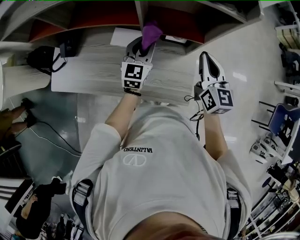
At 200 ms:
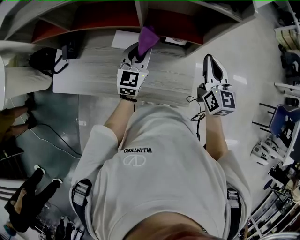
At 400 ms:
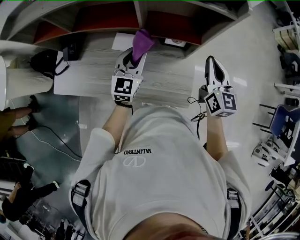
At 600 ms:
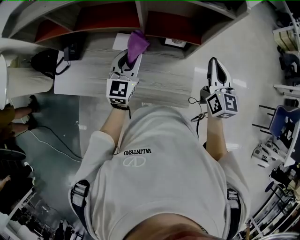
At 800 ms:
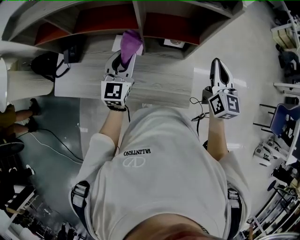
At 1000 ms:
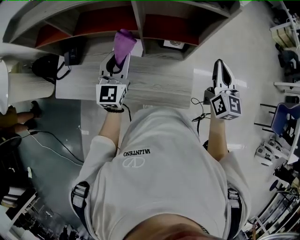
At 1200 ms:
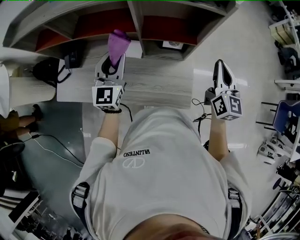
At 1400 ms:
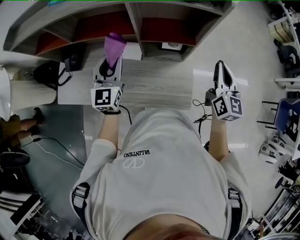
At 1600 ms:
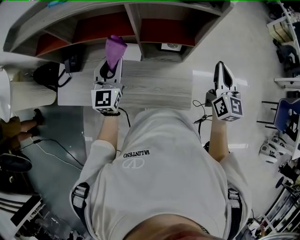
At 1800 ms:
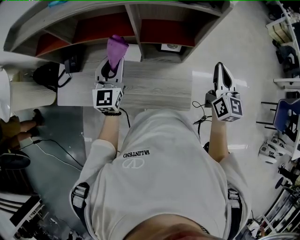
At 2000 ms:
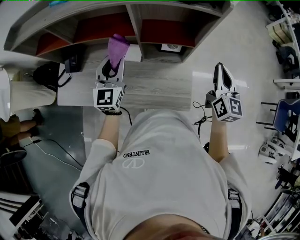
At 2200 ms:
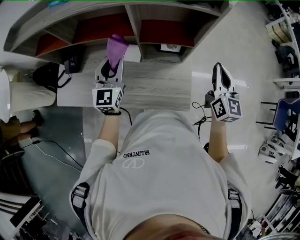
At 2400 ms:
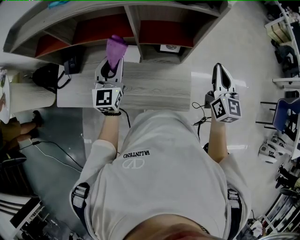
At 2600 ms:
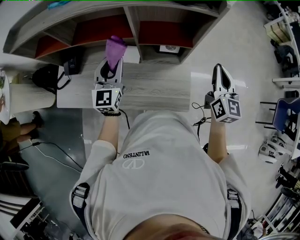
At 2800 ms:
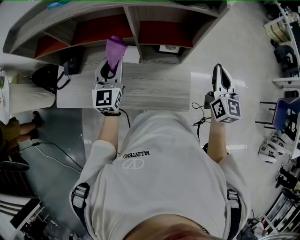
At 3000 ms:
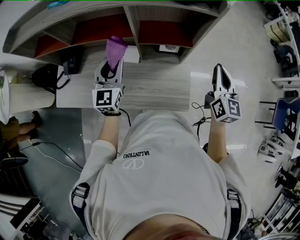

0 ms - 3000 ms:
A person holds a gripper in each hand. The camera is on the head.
0 ms - 1600 ms: The right gripper heads to the right, covering approximately 10 cm; the left gripper is displaced to the left, upward and backward by about 15 cm.
1600 ms - 3000 ms: Both grippers stay put.

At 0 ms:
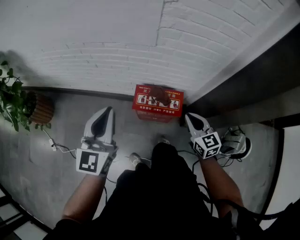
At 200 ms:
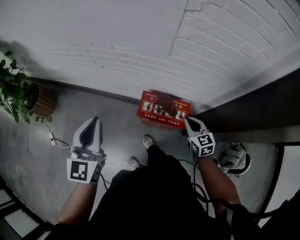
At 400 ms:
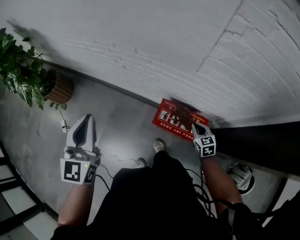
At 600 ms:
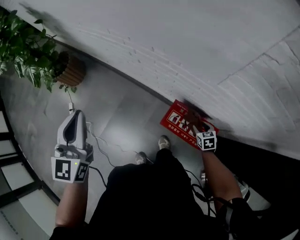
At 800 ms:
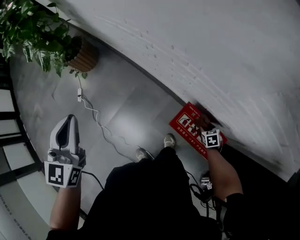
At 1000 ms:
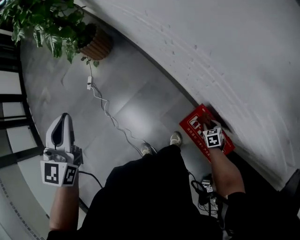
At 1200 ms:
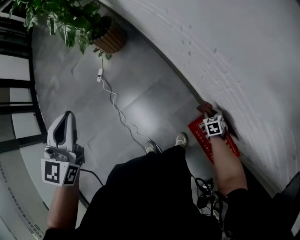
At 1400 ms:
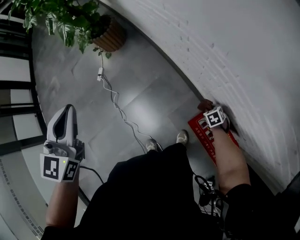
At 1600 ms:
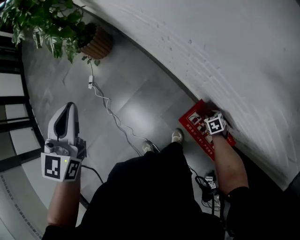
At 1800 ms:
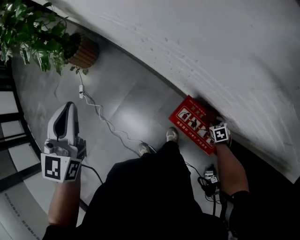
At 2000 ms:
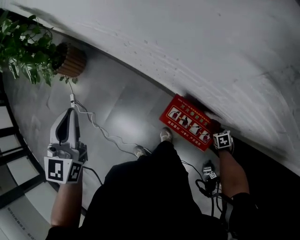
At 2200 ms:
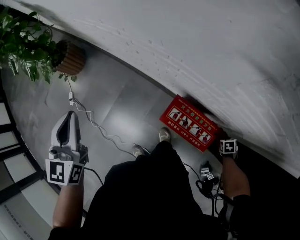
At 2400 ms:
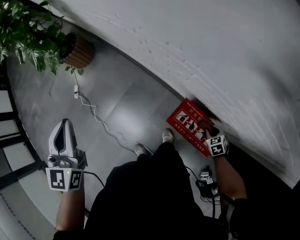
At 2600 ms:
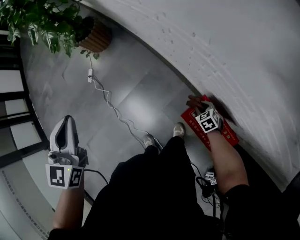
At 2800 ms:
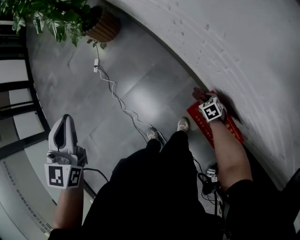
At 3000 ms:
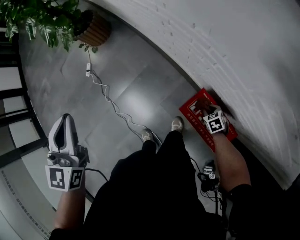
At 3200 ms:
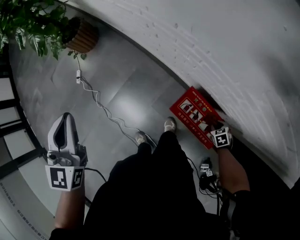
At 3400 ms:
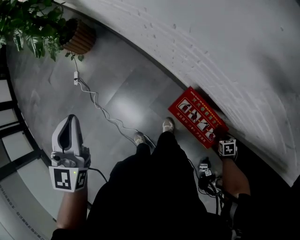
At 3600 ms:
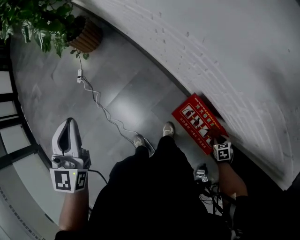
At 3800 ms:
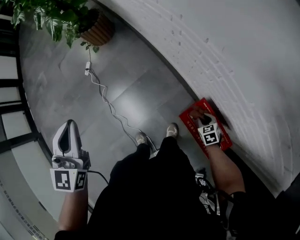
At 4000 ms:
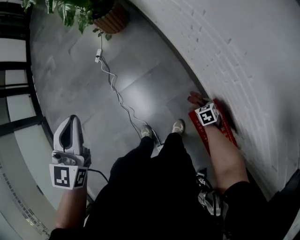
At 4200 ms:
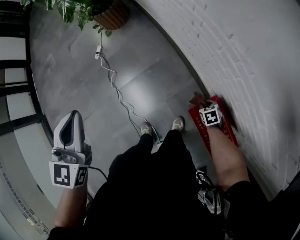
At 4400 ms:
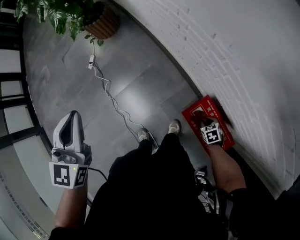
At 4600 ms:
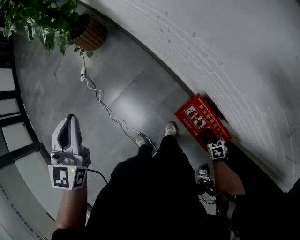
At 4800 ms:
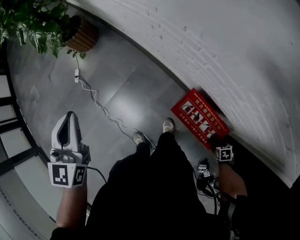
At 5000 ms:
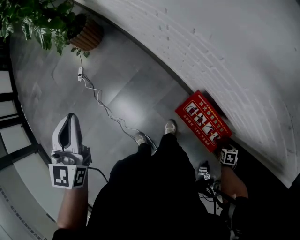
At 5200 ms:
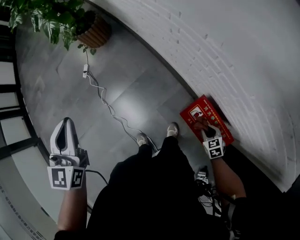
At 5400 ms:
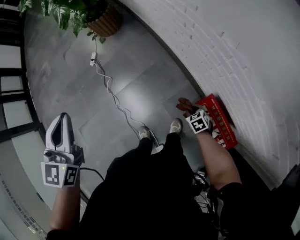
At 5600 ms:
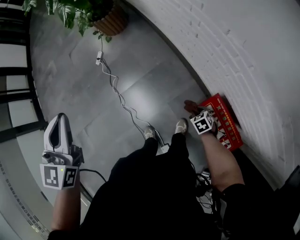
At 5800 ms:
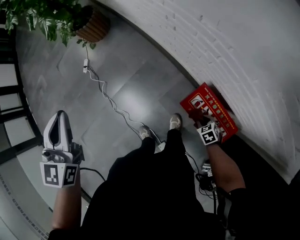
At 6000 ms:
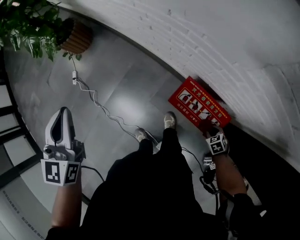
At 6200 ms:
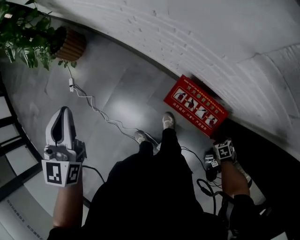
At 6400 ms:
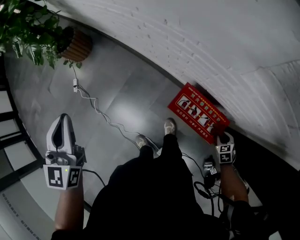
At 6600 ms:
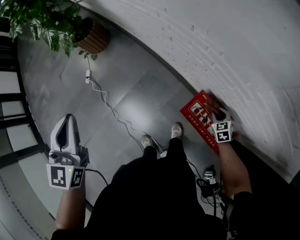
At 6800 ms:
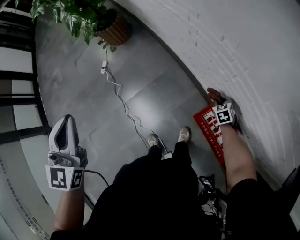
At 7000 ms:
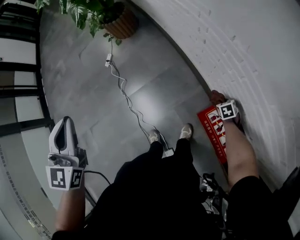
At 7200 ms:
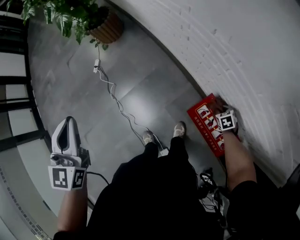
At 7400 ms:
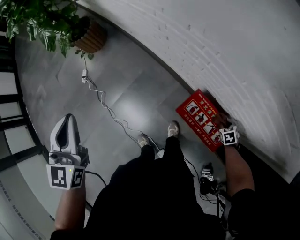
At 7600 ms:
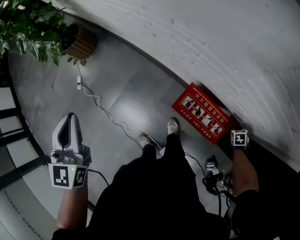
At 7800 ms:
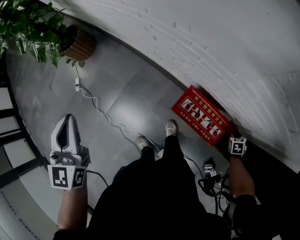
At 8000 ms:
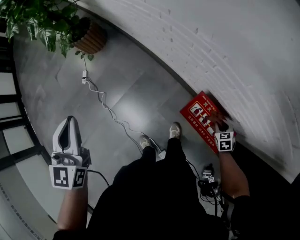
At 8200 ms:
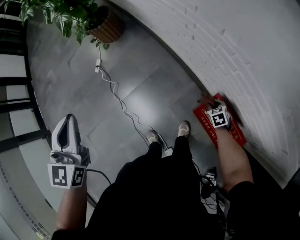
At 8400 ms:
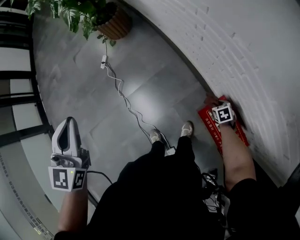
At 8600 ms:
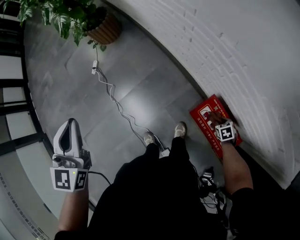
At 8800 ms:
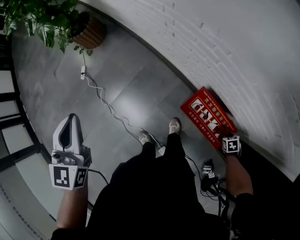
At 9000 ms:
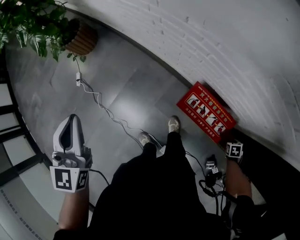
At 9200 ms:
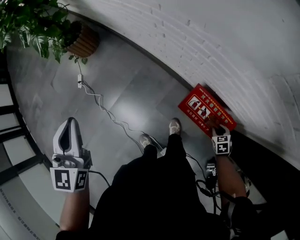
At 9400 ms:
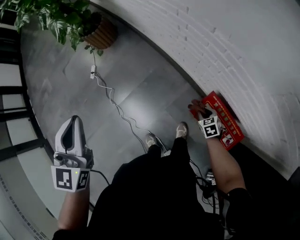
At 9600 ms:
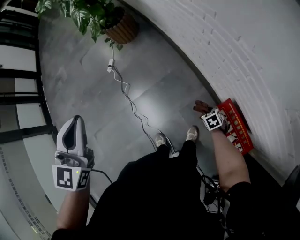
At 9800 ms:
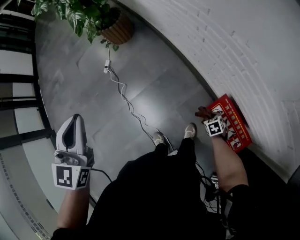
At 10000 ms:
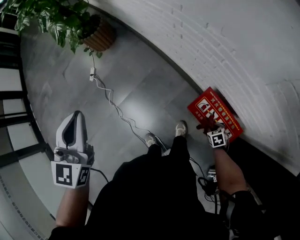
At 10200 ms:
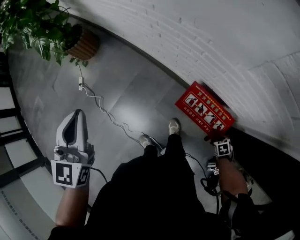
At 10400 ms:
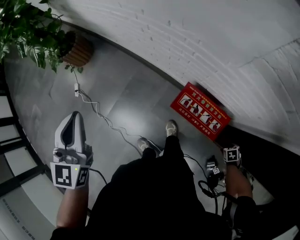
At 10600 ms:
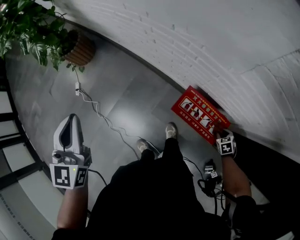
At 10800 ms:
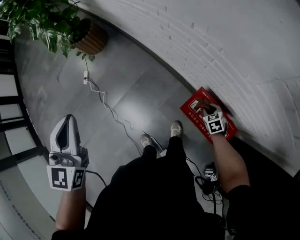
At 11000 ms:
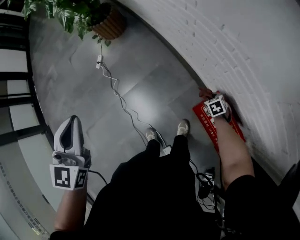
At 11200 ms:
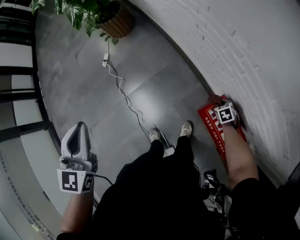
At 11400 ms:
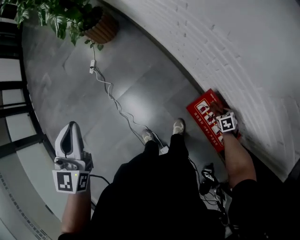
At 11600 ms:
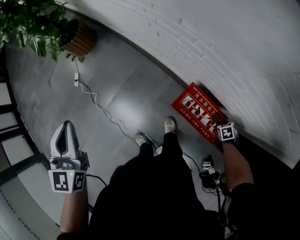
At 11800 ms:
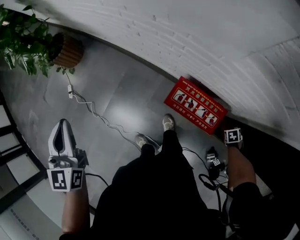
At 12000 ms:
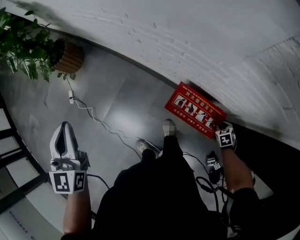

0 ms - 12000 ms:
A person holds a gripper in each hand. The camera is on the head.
0 ms - 1600 ms: The right gripper moves downward, about 35 cm, points its fingers some 50 degrees further downward, and opens; the left gripper ends up some 20 cm from where it was, and turns by approximately 50 degrees.
1600 ms - 3000 ms: The left gripper moves some 5 cm.
6000 ms - 7600 ms: The right gripper turns by approximately 30 degrees.

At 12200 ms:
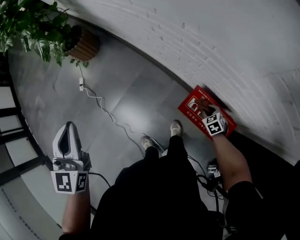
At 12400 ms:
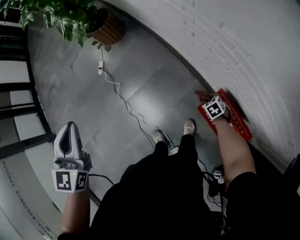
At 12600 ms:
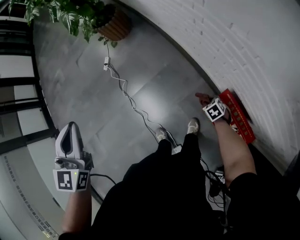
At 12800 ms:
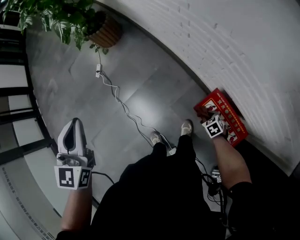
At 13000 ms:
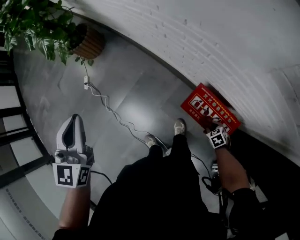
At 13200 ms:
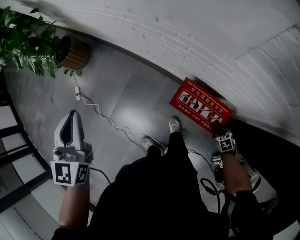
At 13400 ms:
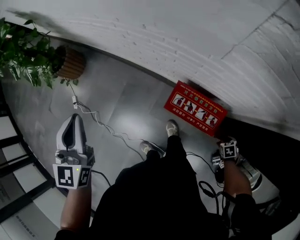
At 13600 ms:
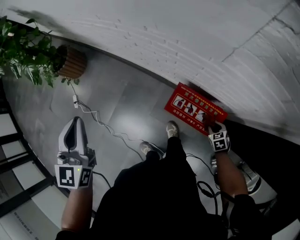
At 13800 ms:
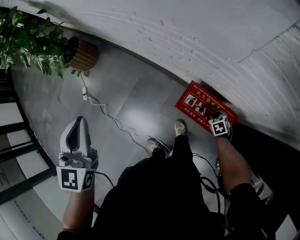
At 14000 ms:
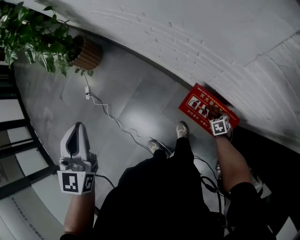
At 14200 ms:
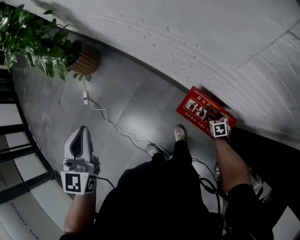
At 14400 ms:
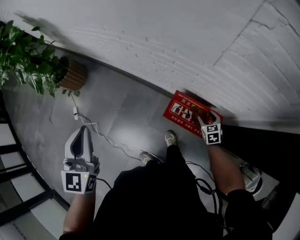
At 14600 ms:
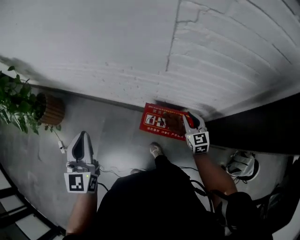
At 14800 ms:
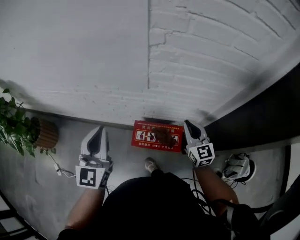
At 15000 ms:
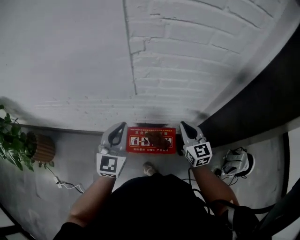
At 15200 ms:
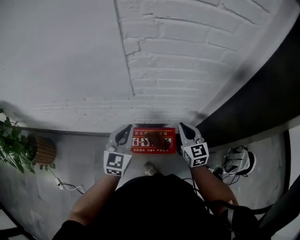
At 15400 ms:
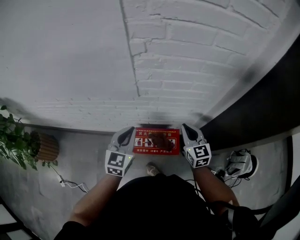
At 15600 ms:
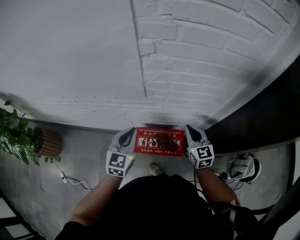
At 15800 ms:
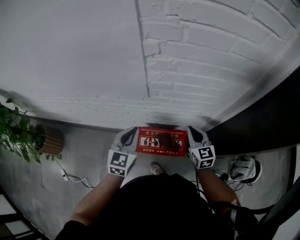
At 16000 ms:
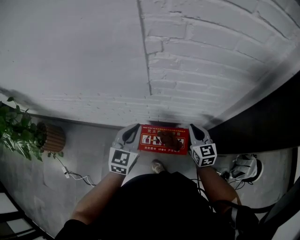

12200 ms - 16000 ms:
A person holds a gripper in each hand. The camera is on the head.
12200 ms - 13400 ms: The left gripper changes place by some 10 cm. Meanwhile the right gripper moves about 30 cm, and turns by about 40 degrees.
13400 ms - 14800 ms: The left gripper moves about 20 cm, and rotates about 30 degrees, while the right gripper moves upward, some 35 cm, tilts its fingers about 70 degrees upward, and opens and closes again.
14800 ms - 16000 ms: The left gripper goes roughly 15 cm downward, to the right and forward, and changes its angle by roughly 20 degrees. The right gripper shifts by approximately 5 cm.

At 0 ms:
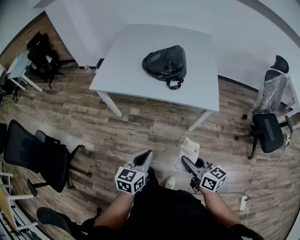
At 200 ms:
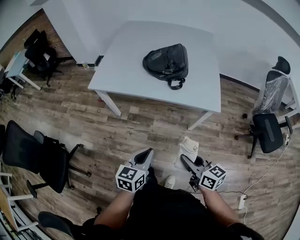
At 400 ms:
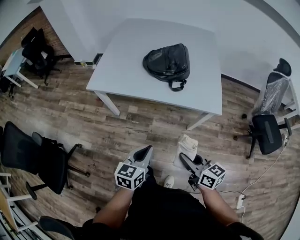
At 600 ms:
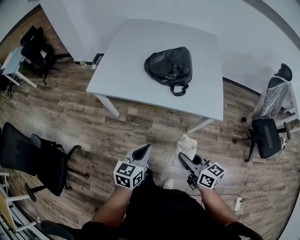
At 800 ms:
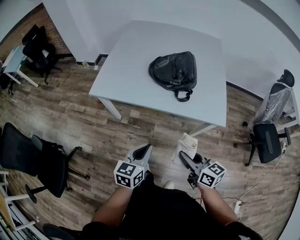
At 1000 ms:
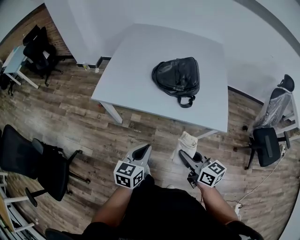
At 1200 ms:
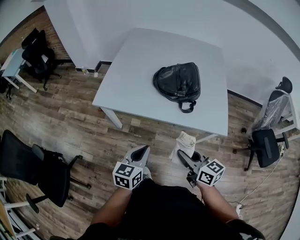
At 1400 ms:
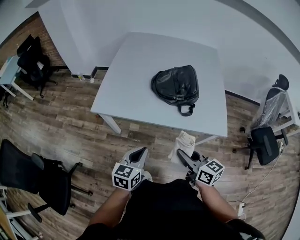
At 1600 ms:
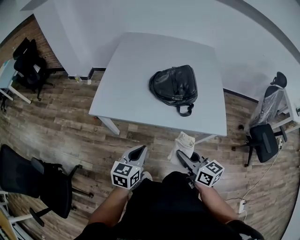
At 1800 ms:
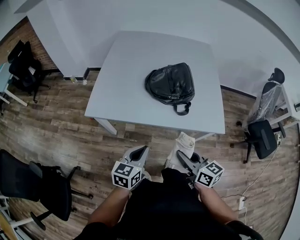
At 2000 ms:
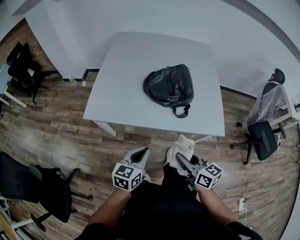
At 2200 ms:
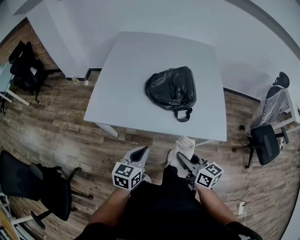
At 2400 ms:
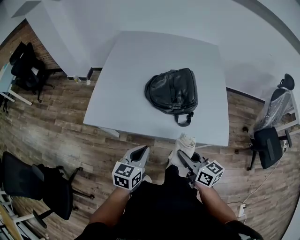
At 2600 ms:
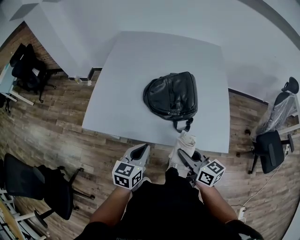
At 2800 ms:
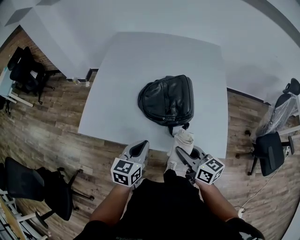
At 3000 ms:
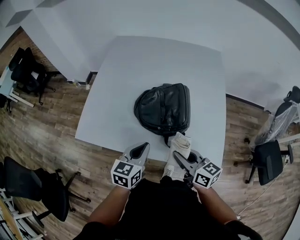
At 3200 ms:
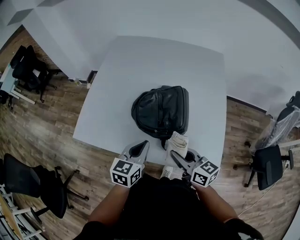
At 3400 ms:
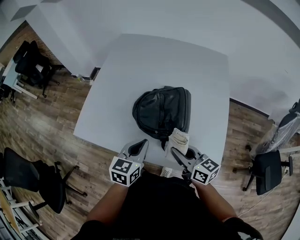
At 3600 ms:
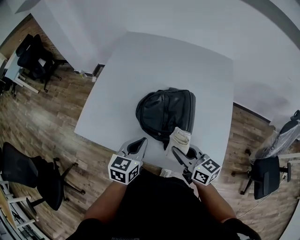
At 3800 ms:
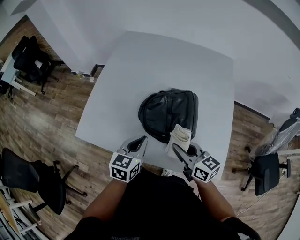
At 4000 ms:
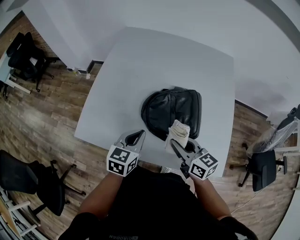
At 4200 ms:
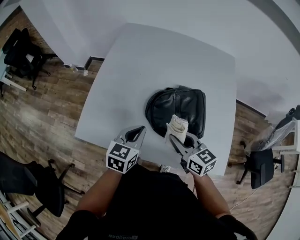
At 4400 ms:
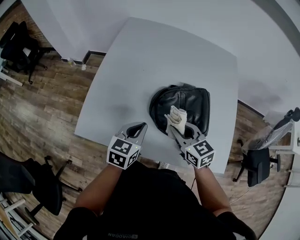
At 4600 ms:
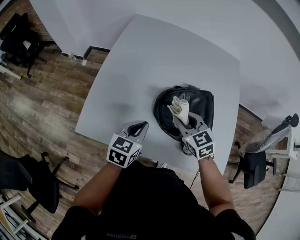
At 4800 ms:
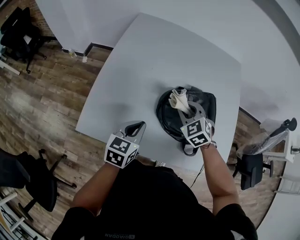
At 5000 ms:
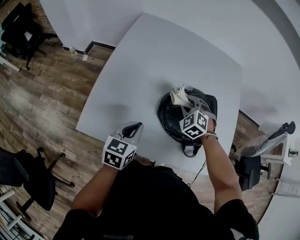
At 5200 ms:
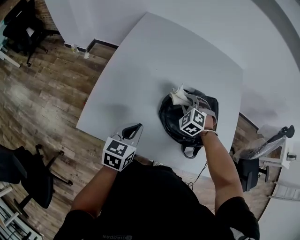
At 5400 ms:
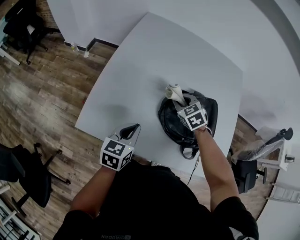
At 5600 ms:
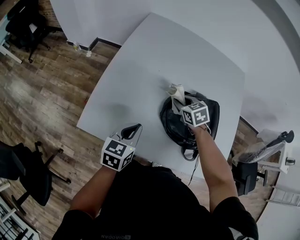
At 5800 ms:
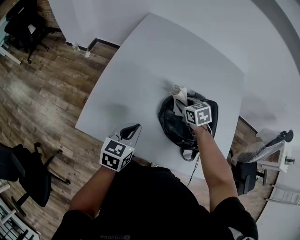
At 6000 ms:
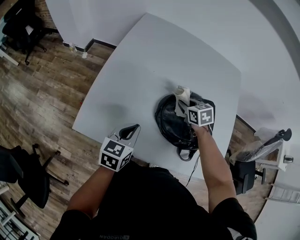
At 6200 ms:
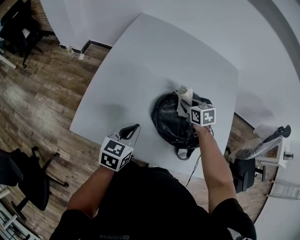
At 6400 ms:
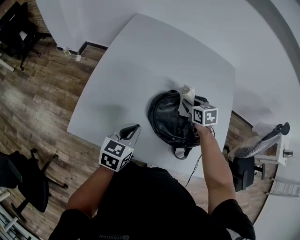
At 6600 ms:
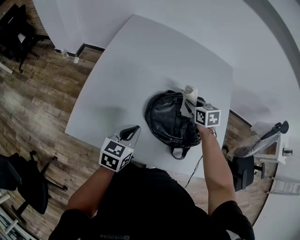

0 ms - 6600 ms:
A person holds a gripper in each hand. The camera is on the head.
0 ms - 1600 ms: The grippers both shift forward and to the left by approximately 25 cm.
1600 ms - 3200 ms: The grippers both shift forward and to the right by about 25 cm.
3200 ms - 5000 ms: The left gripper travels to the left and forward by about 20 cm. The right gripper is displaced forward and to the left by approximately 30 cm, and rolls counterclockwise, seen from behind, by approximately 70 degrees.
5000 ms - 6600 ms: The right gripper goes roughly 10 cm to the right, and rotates around the line of its fingers by approximately 60 degrees, clockwise from behind.
